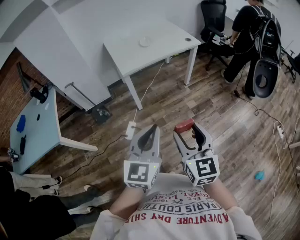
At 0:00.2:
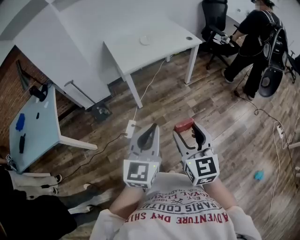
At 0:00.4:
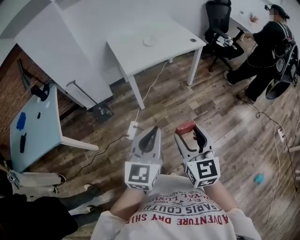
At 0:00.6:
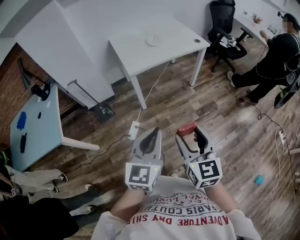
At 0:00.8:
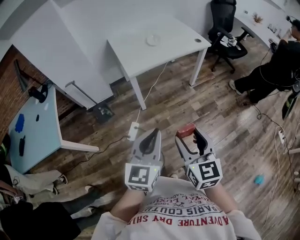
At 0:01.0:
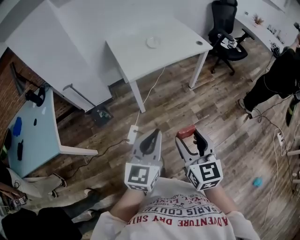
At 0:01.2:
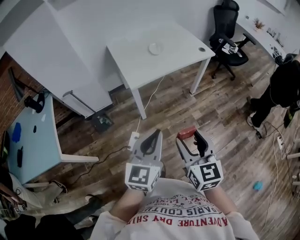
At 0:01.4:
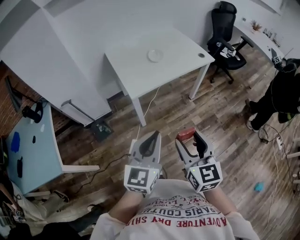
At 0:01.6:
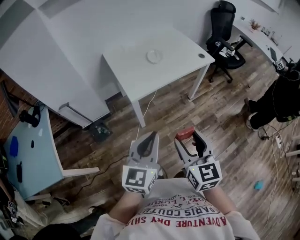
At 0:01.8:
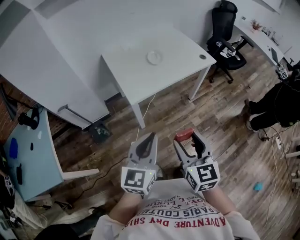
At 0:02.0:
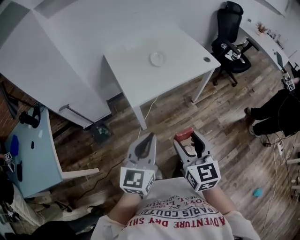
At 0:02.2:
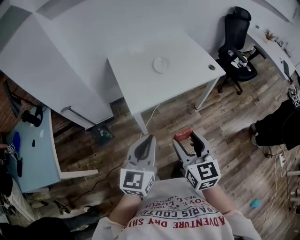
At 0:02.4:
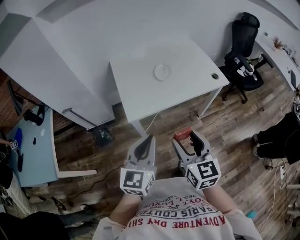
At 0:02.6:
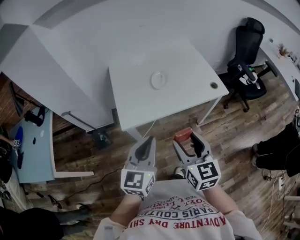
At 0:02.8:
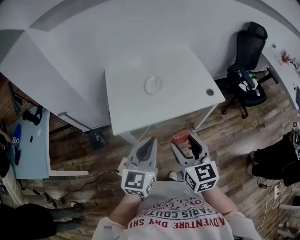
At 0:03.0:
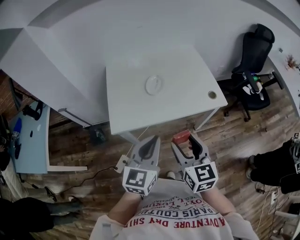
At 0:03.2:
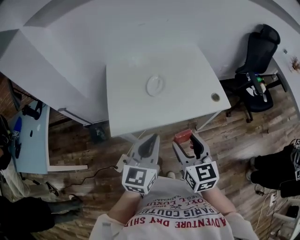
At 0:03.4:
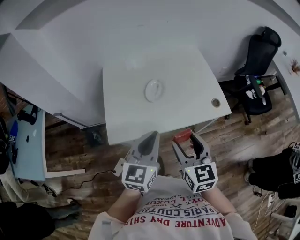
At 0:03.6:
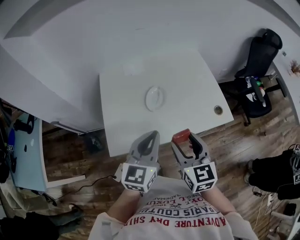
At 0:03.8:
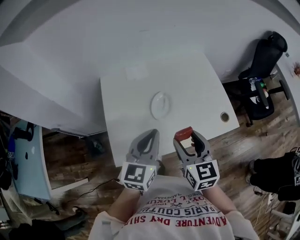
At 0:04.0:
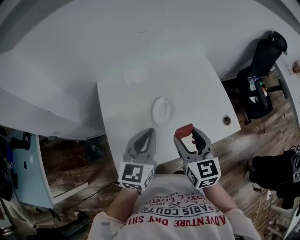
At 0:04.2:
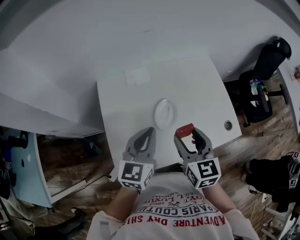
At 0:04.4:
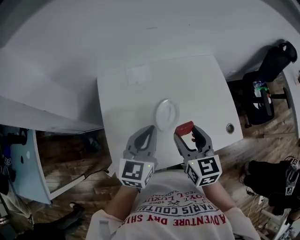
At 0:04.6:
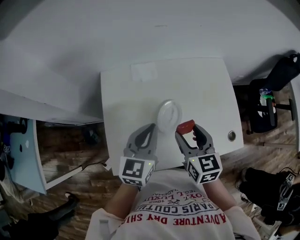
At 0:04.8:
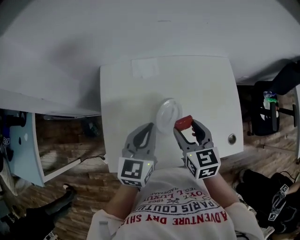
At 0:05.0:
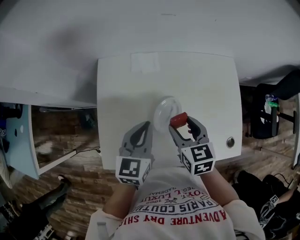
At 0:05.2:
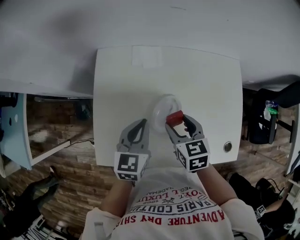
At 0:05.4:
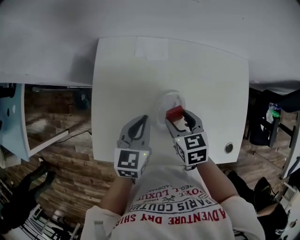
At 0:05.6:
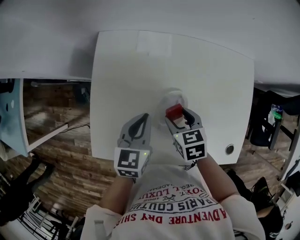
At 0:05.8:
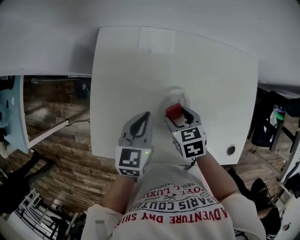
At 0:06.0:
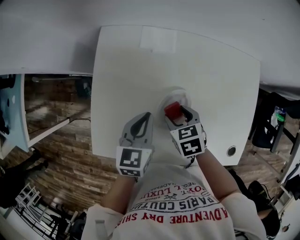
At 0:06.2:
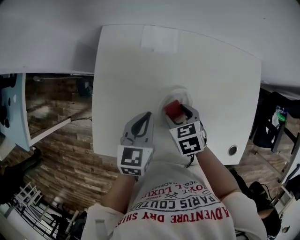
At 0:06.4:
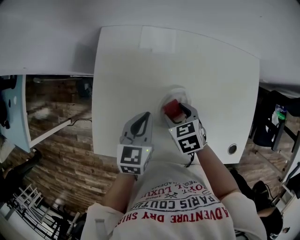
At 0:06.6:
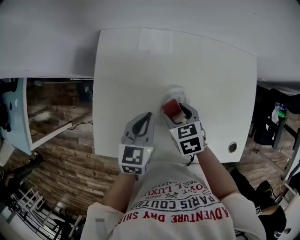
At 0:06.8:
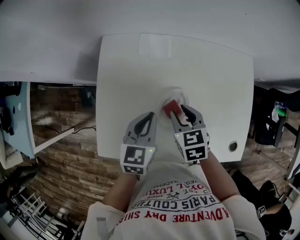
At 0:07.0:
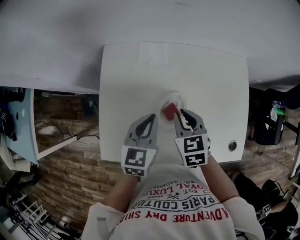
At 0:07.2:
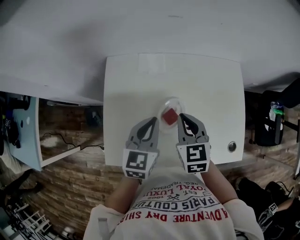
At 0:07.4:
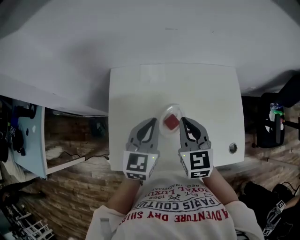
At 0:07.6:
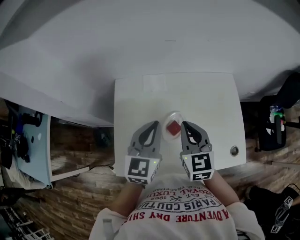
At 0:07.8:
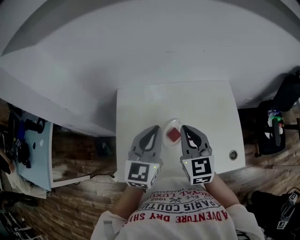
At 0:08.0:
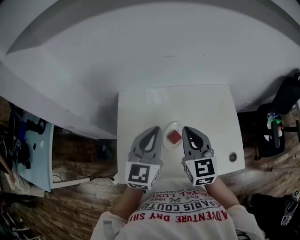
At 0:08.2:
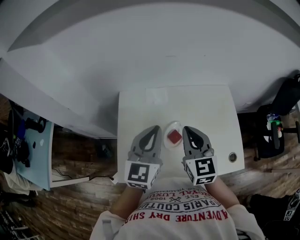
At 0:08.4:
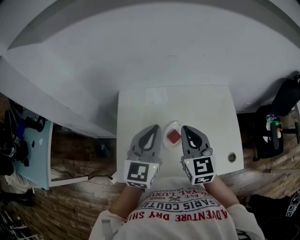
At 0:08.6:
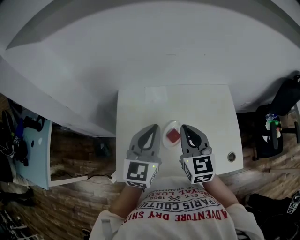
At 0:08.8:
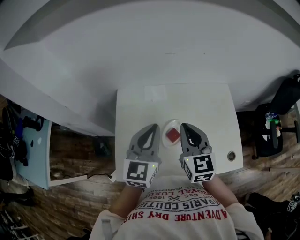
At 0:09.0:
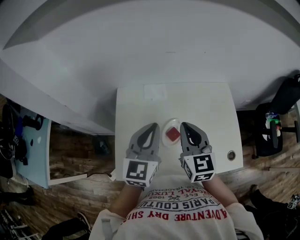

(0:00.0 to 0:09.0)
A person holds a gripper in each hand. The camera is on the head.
0:00.0 - 0:01.6: Both grippers travel together forward and to the left, some 25 cm.
0:01.6 - 0:03.0: Both grippers travel together forward and to the right, approximately 35 cm.
0:03.0 - 0:04.4: The grippers both shift forward by roughly 35 cm.
0:04.4 - 0:06.0: Both grippers move downward, approximately 20 cm. The right gripper angles its fingers downward, by roughly 30 degrees, while the left gripper rotates approximately 30 degrees.
0:06.0 - 0:07.6: Both grippers travel together upward, some 20 cm. The left gripper swivels roughly 30 degrees; the right gripper points its fingers some 40 degrees further upward, and closes up.
0:07.6 - 0:09.0: The grippers stay close to where they were, moving slightly.

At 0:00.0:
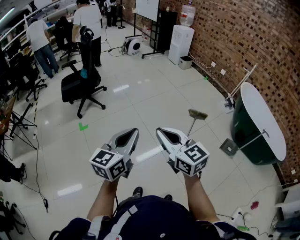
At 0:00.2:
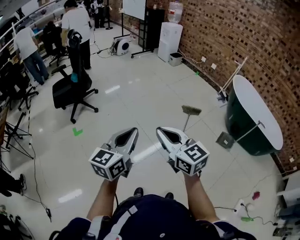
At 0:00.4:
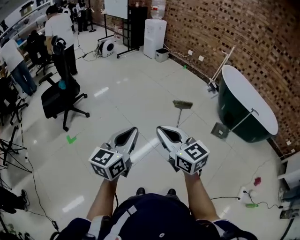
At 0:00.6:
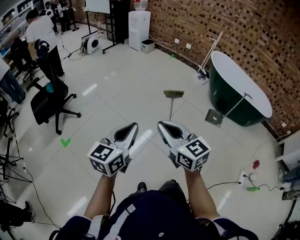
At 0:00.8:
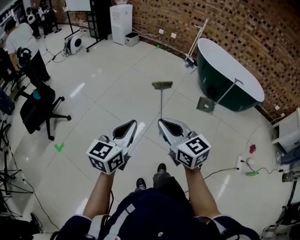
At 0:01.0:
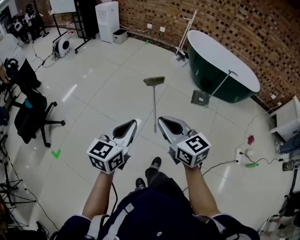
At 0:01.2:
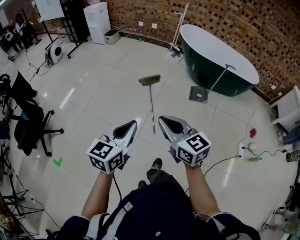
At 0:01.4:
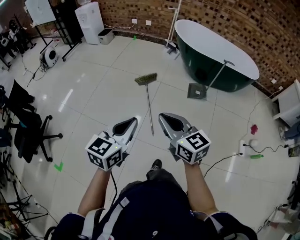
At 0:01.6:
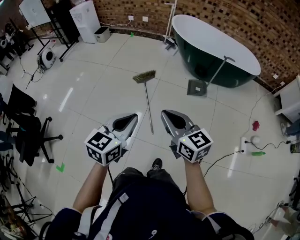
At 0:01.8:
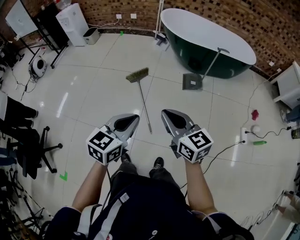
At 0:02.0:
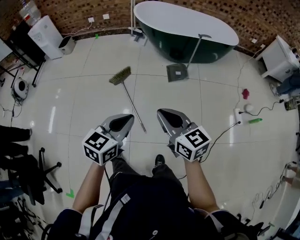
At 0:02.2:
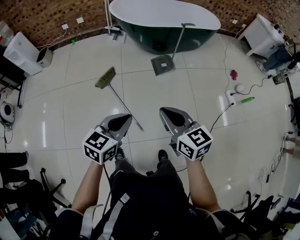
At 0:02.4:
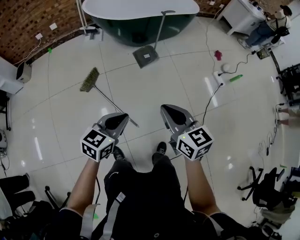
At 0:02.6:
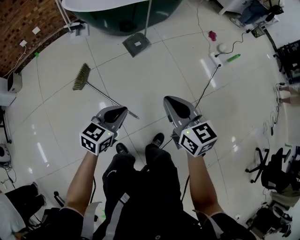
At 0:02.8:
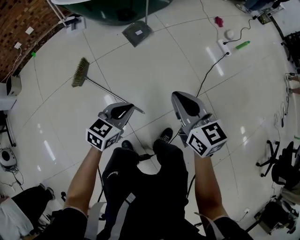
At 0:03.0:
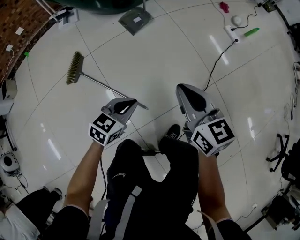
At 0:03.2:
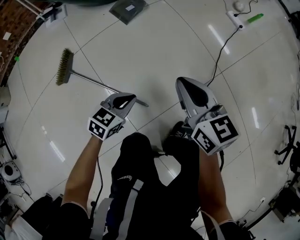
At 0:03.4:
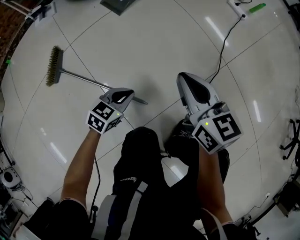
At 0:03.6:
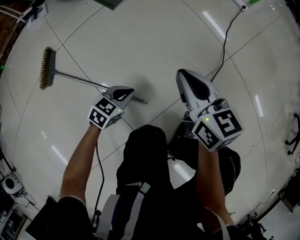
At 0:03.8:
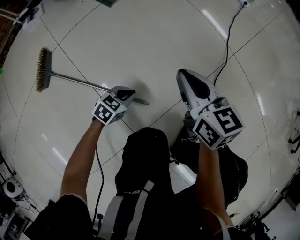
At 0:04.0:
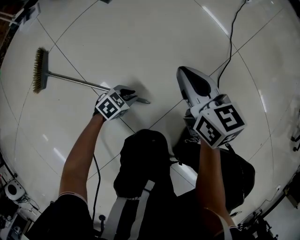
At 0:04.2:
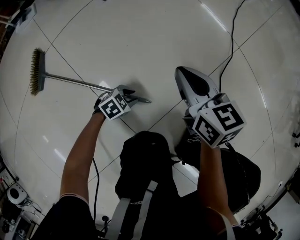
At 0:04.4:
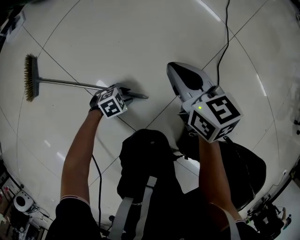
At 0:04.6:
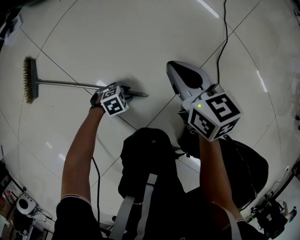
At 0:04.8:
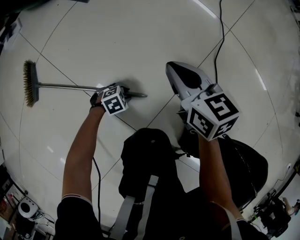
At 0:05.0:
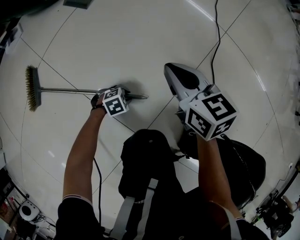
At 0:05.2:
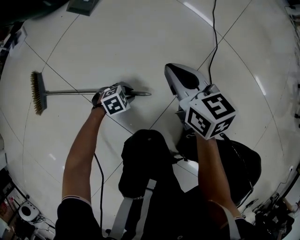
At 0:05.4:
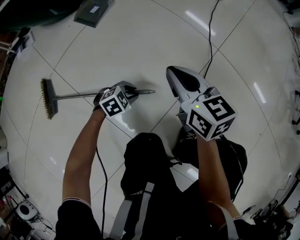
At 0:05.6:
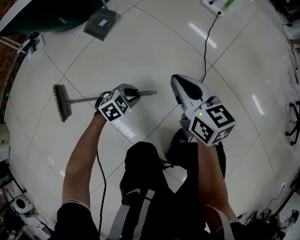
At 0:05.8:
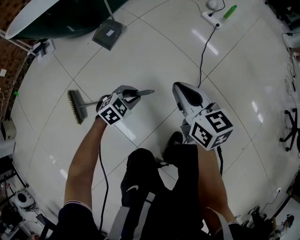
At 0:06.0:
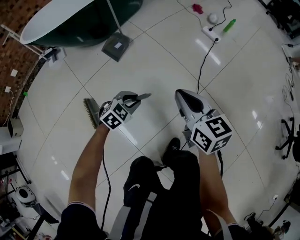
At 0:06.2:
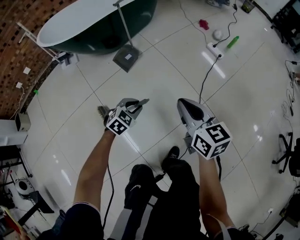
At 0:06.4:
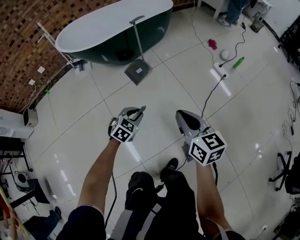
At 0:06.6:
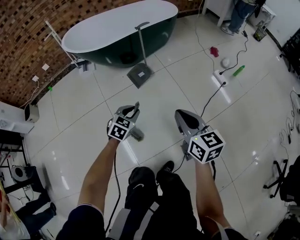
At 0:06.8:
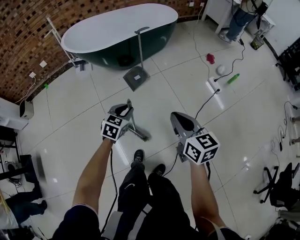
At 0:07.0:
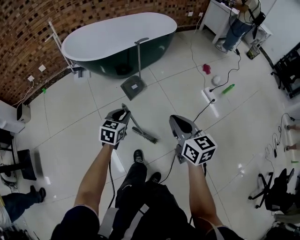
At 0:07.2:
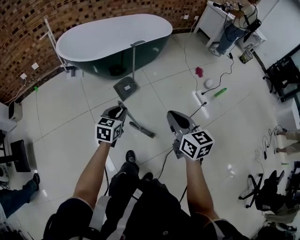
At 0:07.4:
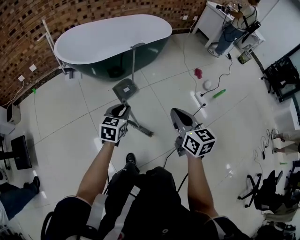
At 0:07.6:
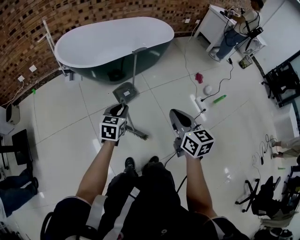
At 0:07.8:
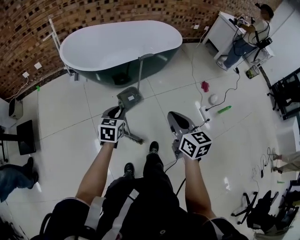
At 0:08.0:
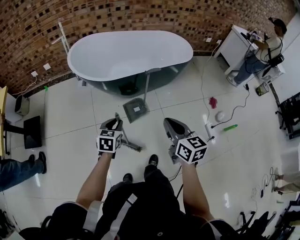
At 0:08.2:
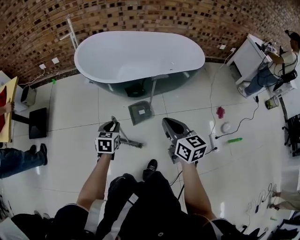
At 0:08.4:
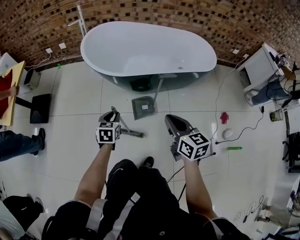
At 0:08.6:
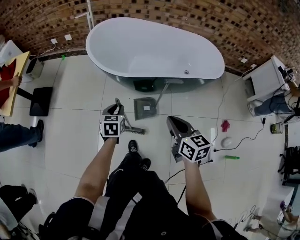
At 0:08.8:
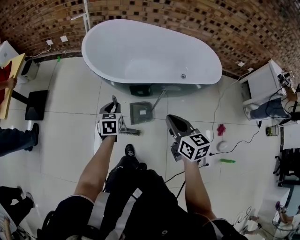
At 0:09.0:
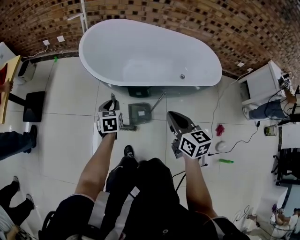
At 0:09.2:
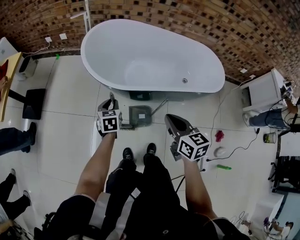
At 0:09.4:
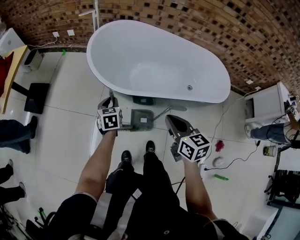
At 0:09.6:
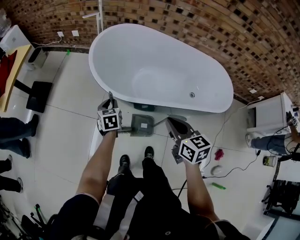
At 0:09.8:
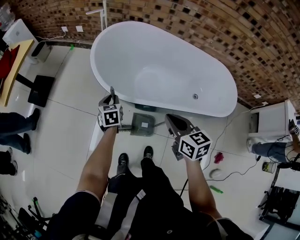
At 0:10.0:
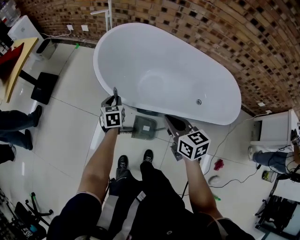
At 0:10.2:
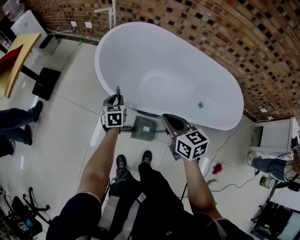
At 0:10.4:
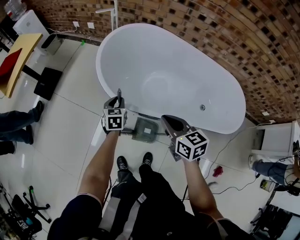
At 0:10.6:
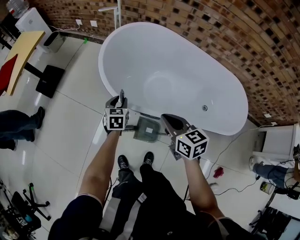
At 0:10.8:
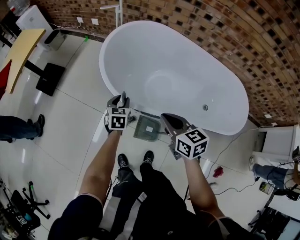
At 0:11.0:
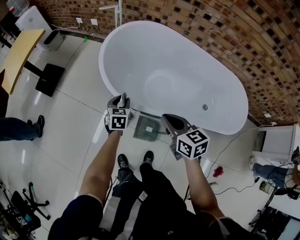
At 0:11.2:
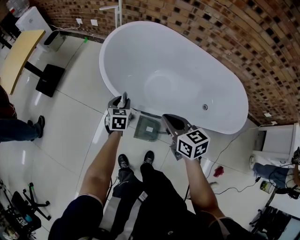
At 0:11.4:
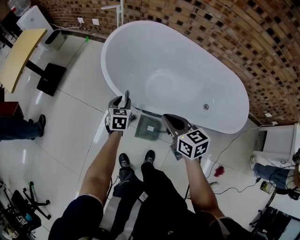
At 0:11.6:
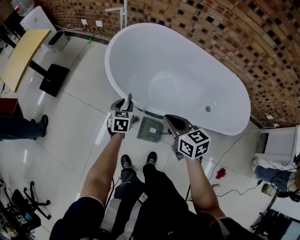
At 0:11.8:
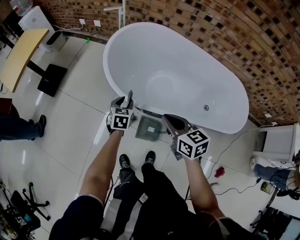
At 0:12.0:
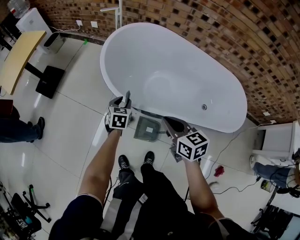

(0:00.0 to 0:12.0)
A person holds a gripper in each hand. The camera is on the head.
0:00.0 - 0:01.6: The left gripper shifts by roughly 35 cm, and changes its angle by approximately 50 degrees. Meanwhile the right gripper ends up some 35 cm from where it was, and swivels some 40 degrees.
0:01.6 - 0:03.0: The left gripper moves downward, some 40 cm, and turns by about 60 degrees. Meanwhile the right gripper is displaced downward by approximately 25 cm, and swivels approximately 60 degrees.
0:03.0 - 0:04.4: The two grippers go roughly 40 cm downward. The left gripper rotates roughly 60 degrees, and opens up.
0:04.4 - 0:06.0: The grippers both shift upward by some 40 cm. The left gripper turns by roughly 30 degrees.
0:06.0 - 0:07.6: The grippers both shift upward by roughly 25 cm. The left gripper rotates some 60 degrees.
0:07.6 - 0:09.0: The right gripper moves roughly 35 cm, and rotates some 30 degrees. Meanwhile the left gripper moves approximately 30 cm, and changes its angle by about 40 degrees.
0:09.0 - 0:10.4: The two grippers go some 20 cm forward. The right gripper rotates approximately 30 degrees.
0:10.4 - 0:12.0: The grippers make only small movements.

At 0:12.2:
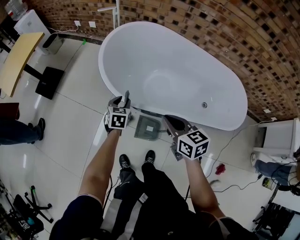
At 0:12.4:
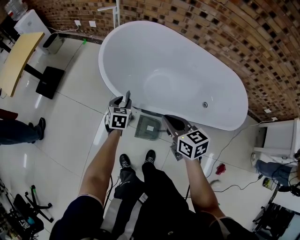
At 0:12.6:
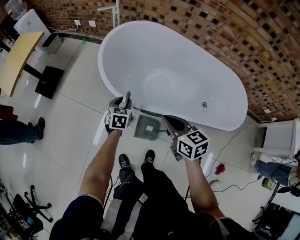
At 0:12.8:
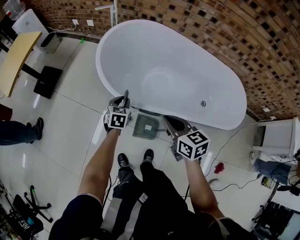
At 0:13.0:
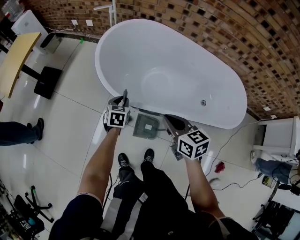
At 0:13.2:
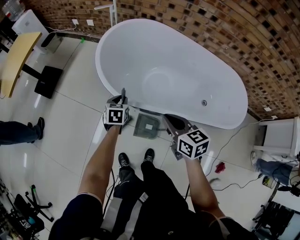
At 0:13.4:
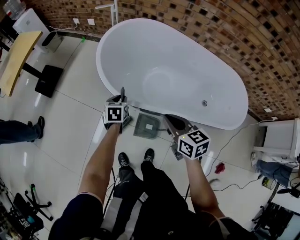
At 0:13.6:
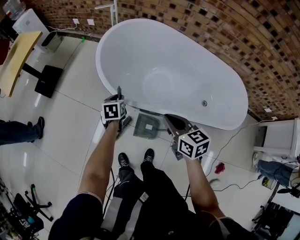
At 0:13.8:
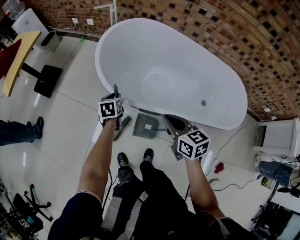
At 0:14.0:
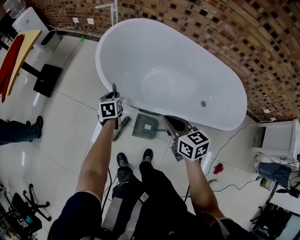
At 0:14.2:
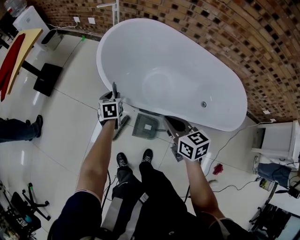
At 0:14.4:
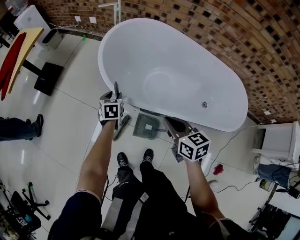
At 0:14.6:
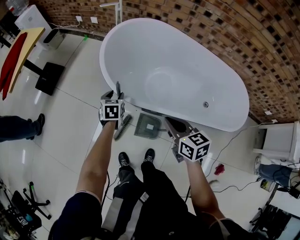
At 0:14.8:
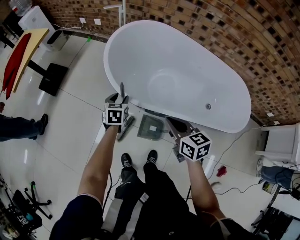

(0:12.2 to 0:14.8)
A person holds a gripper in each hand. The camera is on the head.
0:12.2 - 0:13.4: The grippers move only a little.
0:13.4 - 0:14.8: The left gripper opens its fingers.
